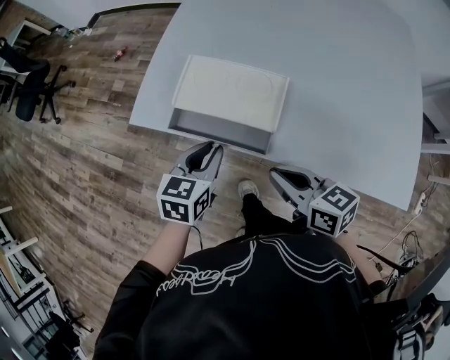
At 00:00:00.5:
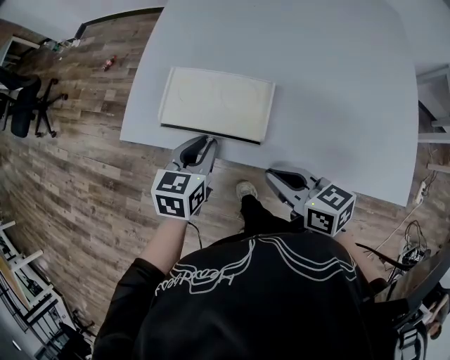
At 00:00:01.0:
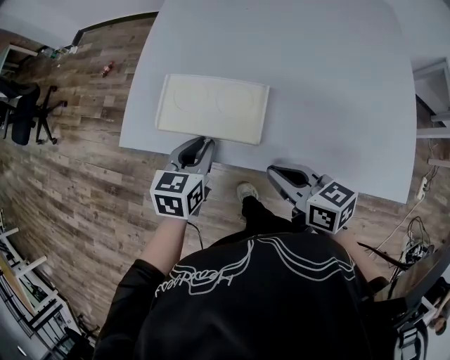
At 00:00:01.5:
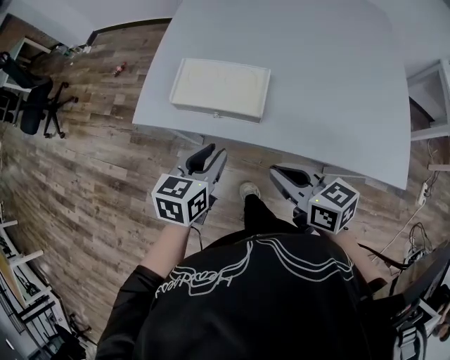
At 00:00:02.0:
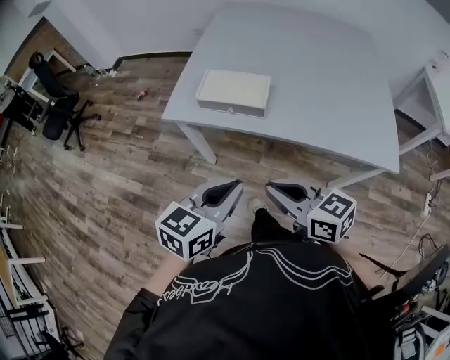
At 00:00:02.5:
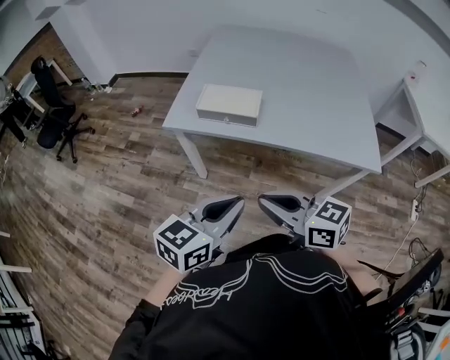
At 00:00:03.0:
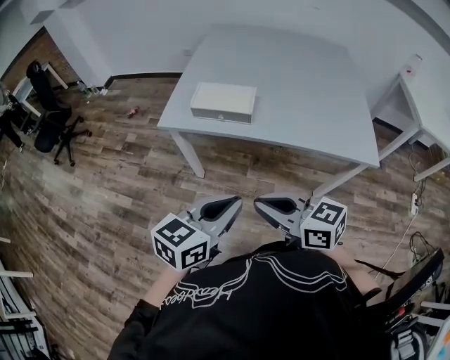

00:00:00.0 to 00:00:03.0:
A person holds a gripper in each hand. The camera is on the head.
00:00:00.0 to 00:00:01.5: The left gripper is displaced upward by some 5 cm. Meanwhile the right gripper ends up roughly 5 cm from where it was.
00:00:01.5 to 00:00:03.0: The two grippers go approximately 30 cm backward and upward. The left gripper swivels about 20 degrees, and closes its fingers.

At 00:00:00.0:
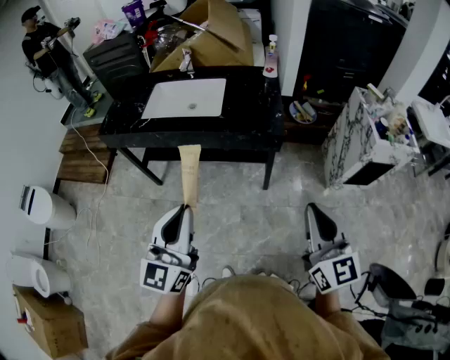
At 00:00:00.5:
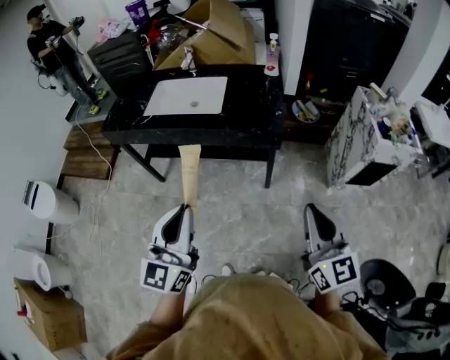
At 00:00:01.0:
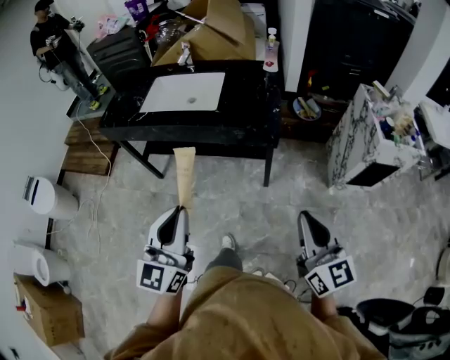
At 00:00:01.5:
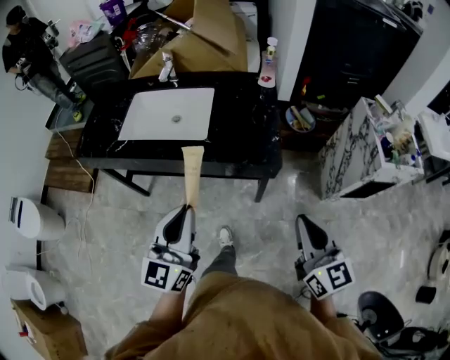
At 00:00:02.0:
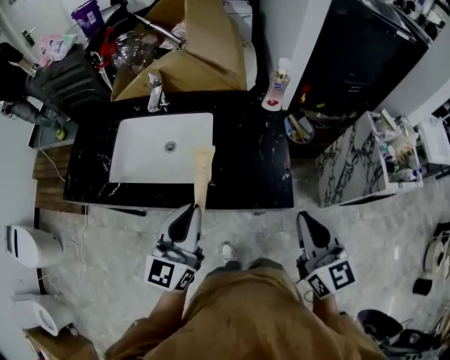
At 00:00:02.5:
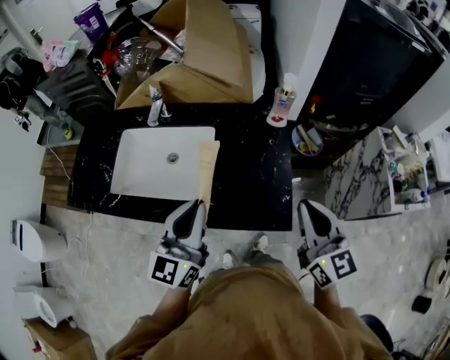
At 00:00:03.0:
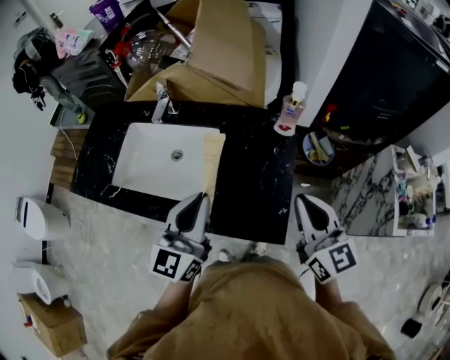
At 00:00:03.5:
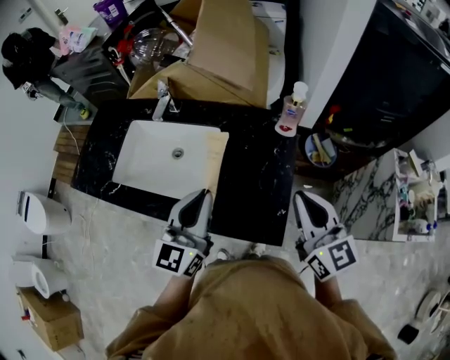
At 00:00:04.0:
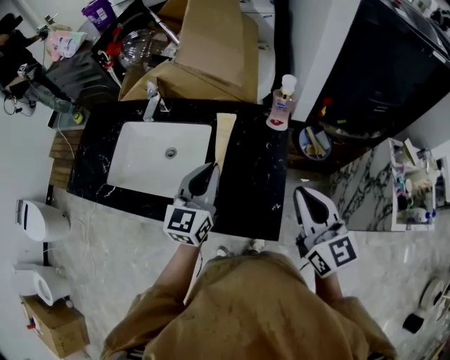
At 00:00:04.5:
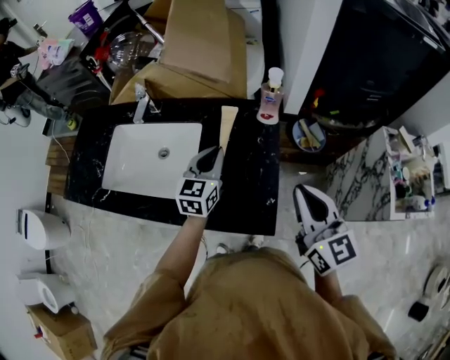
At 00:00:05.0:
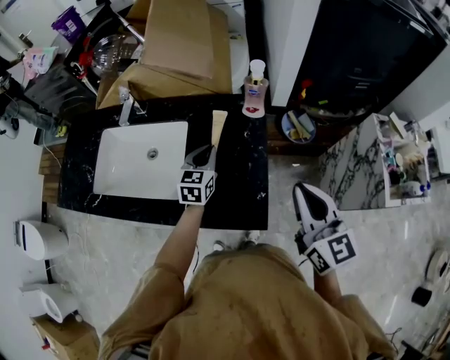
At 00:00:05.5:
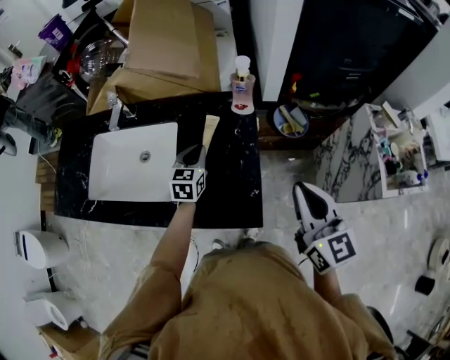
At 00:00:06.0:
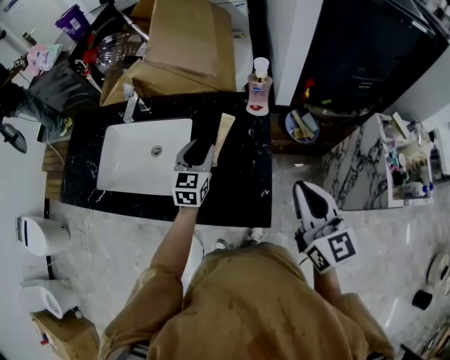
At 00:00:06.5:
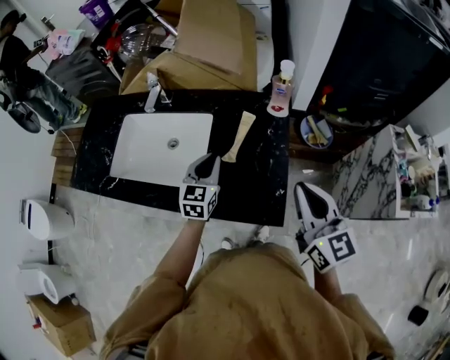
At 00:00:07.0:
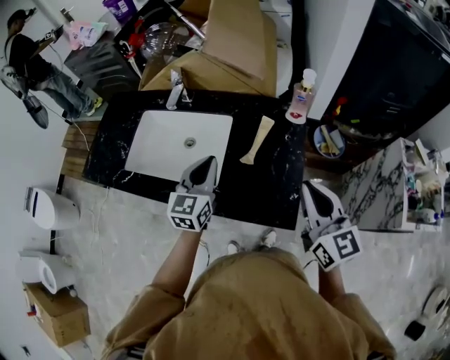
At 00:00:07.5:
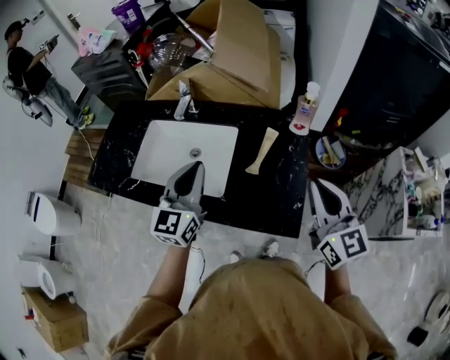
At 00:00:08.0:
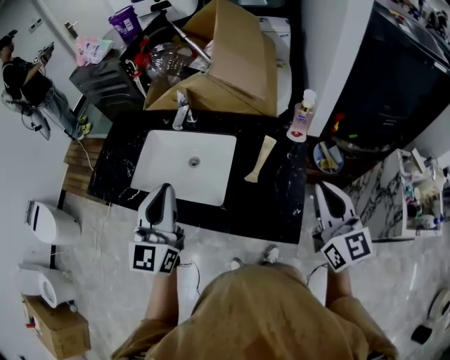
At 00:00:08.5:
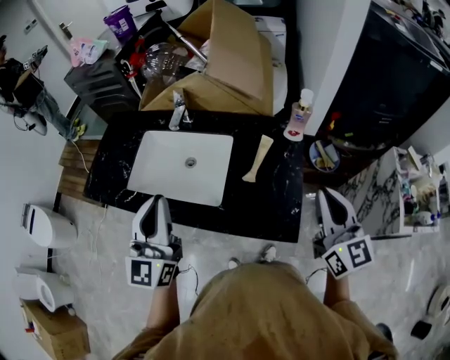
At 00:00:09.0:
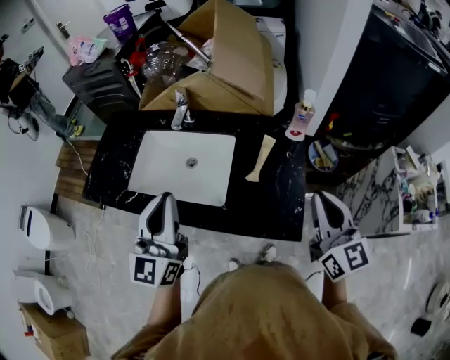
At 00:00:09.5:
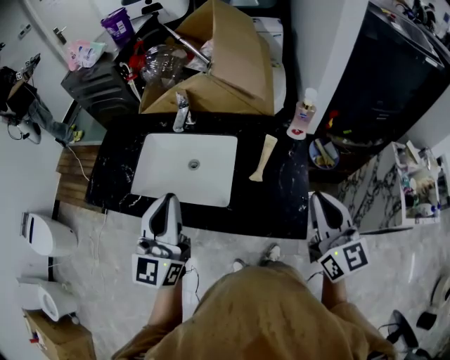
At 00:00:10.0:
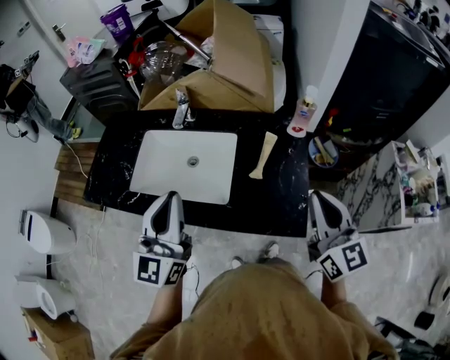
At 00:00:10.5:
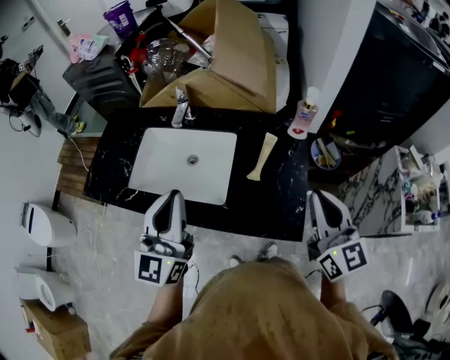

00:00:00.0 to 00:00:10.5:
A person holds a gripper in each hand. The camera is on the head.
00:00:00.0 to 00:00:02.0: Both grippers move forward, about 40 cm.
00:00:02.0 to 00:00:04.0: The two grippers go about 20 cm forward and to the right.
00:00:04.0 to 00:00:06.5: The left gripper is displaced downward by some 10 cm, and opens, then closes again.
00:00:06.5 to 00:00:08.5: The right gripper moves upward, approximately 5 cm. Meanwhile the left gripper travels upward, to the left and backward by approximately 30 cm, and turns by about 30 degrees.
00:00:08.5 to 00:00:10.5: There are only small adjustments of the grippers.

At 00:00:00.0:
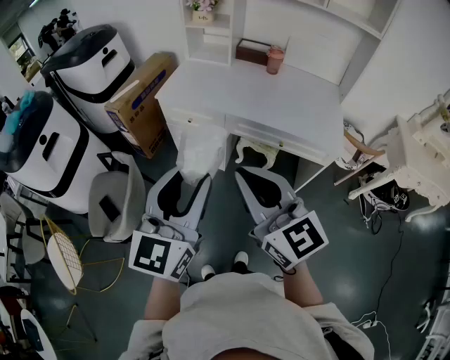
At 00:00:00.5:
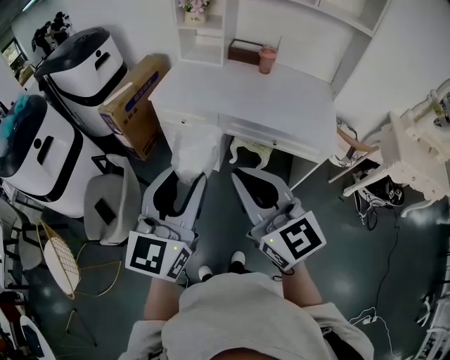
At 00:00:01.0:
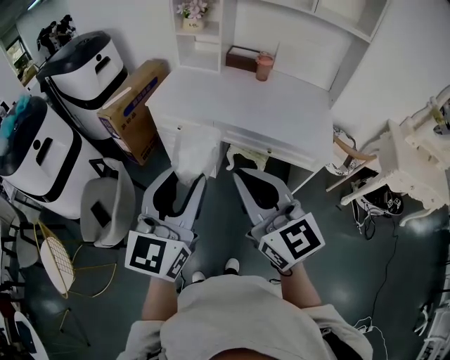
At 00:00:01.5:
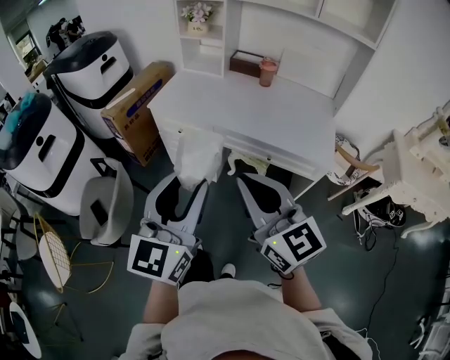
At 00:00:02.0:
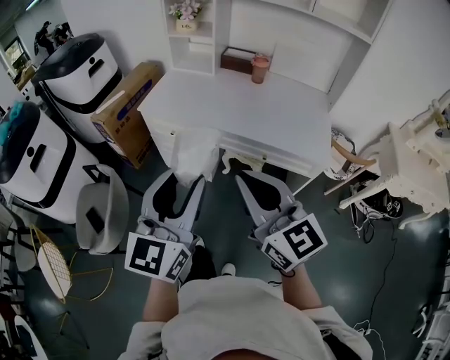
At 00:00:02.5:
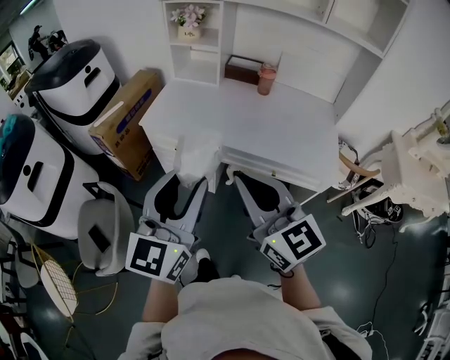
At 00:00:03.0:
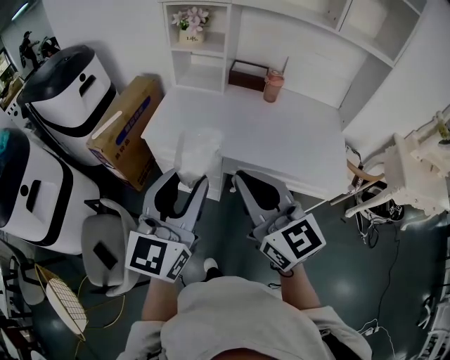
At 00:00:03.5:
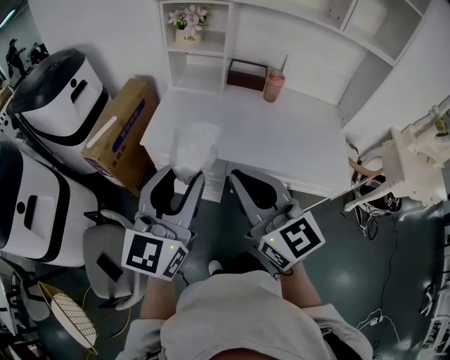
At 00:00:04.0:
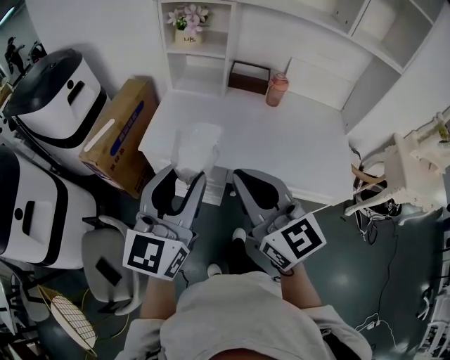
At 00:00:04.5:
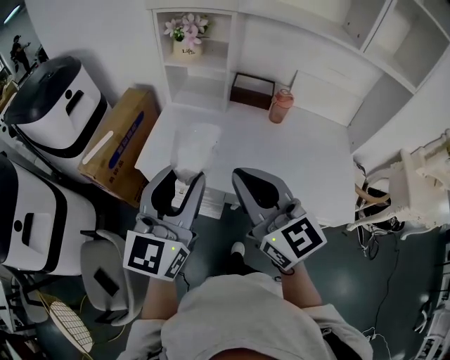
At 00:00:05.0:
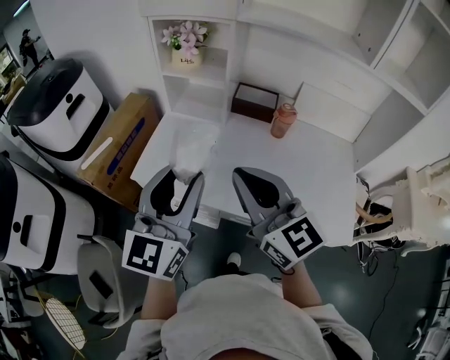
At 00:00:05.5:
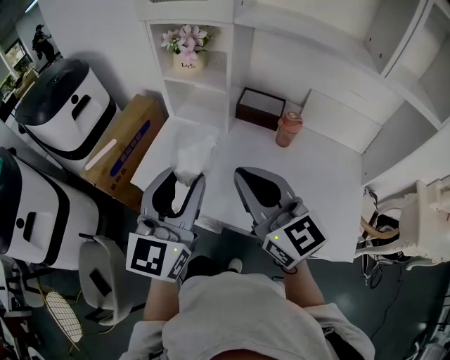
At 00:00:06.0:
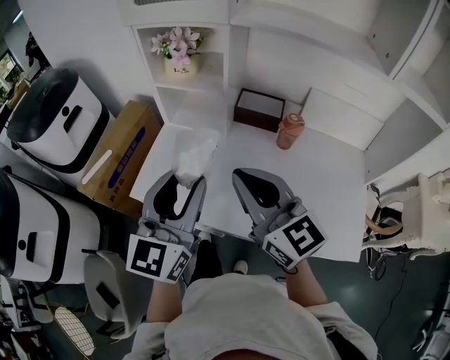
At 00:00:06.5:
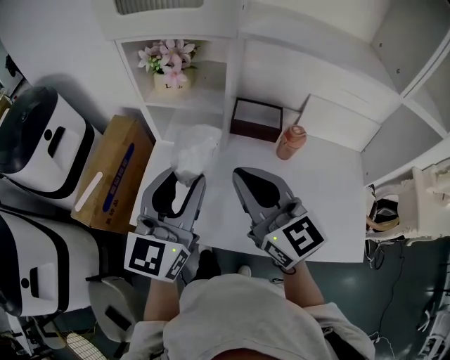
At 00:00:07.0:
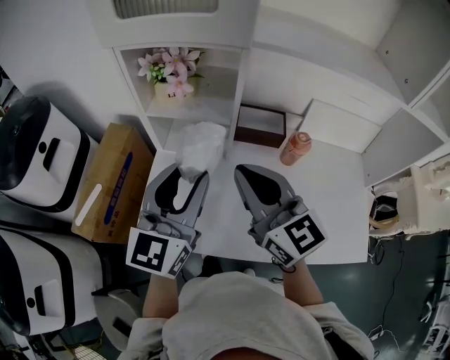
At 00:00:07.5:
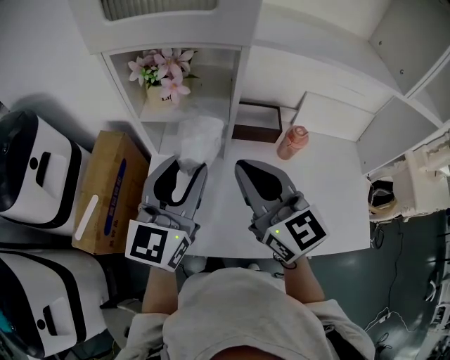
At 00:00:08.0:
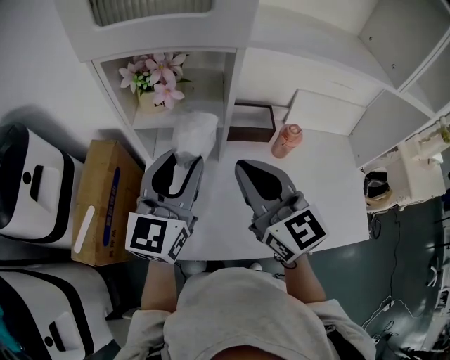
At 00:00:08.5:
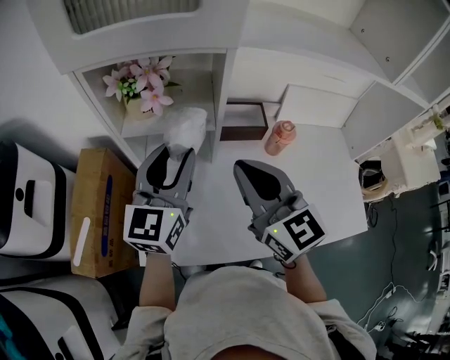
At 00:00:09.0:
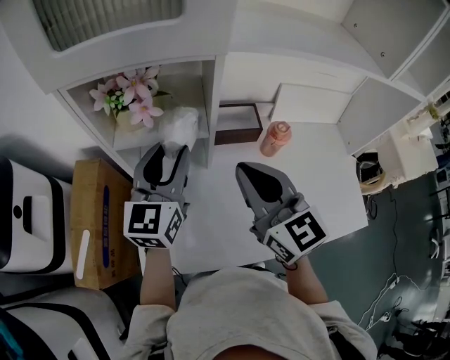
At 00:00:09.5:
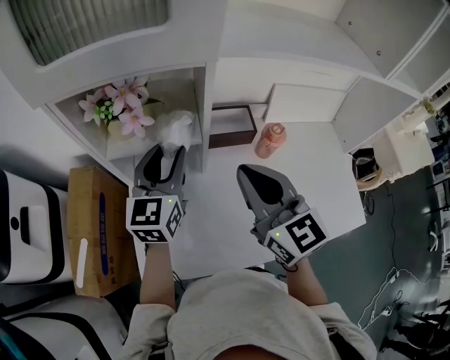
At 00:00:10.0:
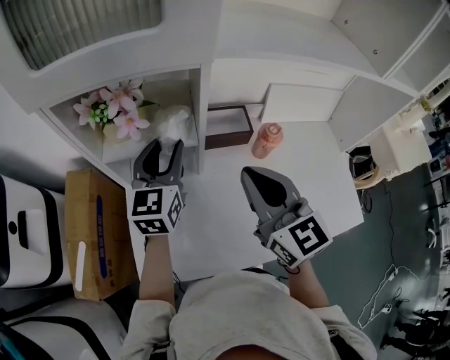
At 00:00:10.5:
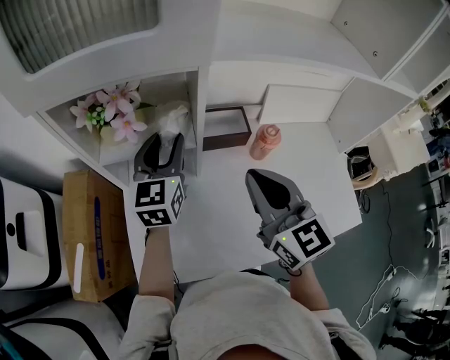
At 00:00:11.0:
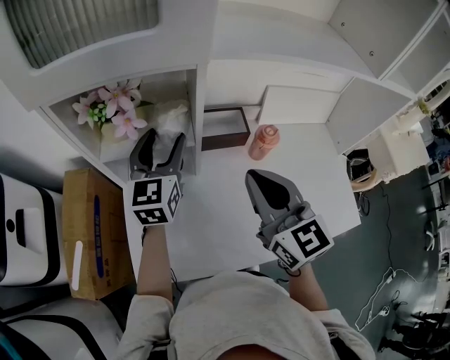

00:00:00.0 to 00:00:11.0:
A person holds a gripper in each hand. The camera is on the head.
00:00:00.0 to 00:00:02.0: Both grippers move to the right, approximately 5 cm.
00:00:02.0 to 00:00:03.5: Both grippers travel together forward and to the left, approximately 25 cm.
00:00:03.5 to 00:00:05.5: Both grippers move forward and to the right, roughly 25 cm.
00:00:05.5 to 00:00:07.5: The grippers both shift forward by about 20 cm.
00:00:07.5 to 00:00:09.0: The left gripper moves forward, about 10 cm.
00:00:09.0 to 00:00:11.0: The left gripper heads forward, covering roughly 5 cm, and opens up.

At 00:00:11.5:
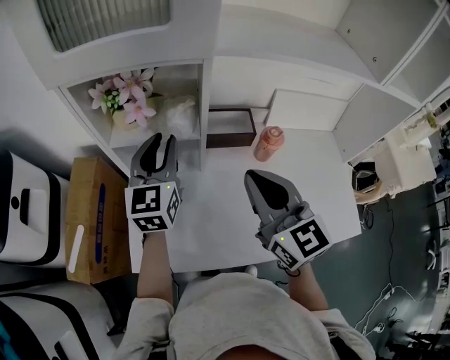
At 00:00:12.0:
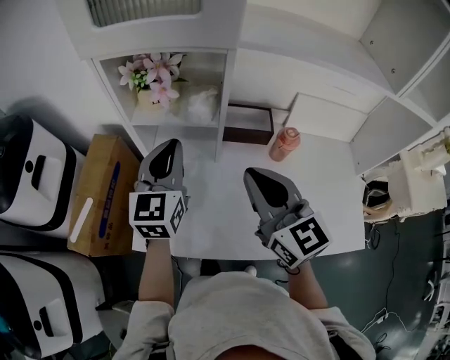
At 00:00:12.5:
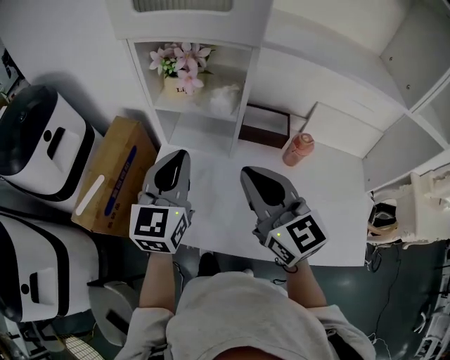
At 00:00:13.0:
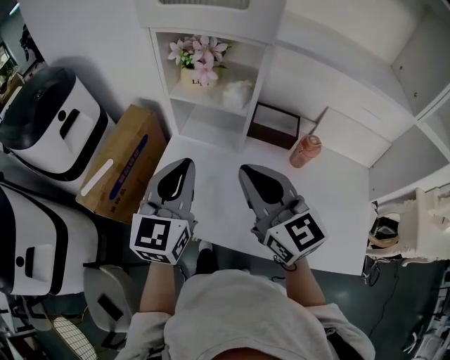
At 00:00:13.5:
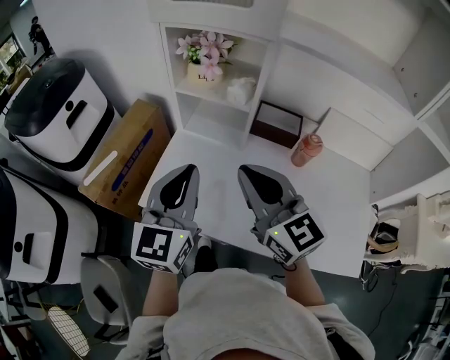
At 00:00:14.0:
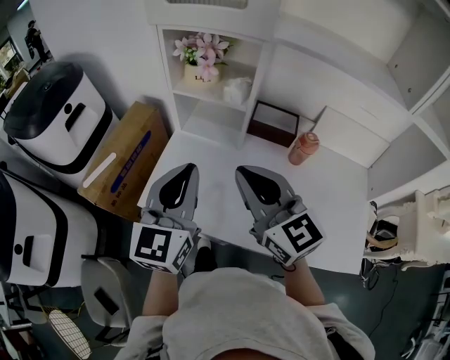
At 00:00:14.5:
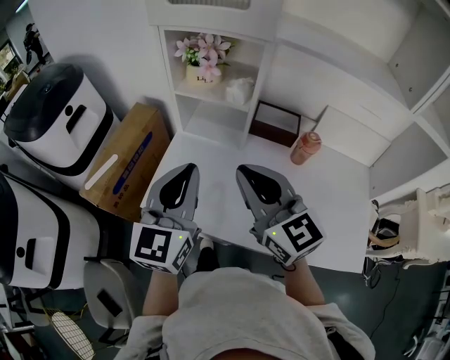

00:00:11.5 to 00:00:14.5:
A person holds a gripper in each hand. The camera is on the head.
00:00:11.5 to 00:00:13.0: The left gripper heads backward, covering roughly 20 cm, and closes. The right gripper travels to the left and backward by some 10 cm, and rotates about 30 degrees.
00:00:13.0 to 00:00:14.5: The left gripper shifts some 5 cm backward.
